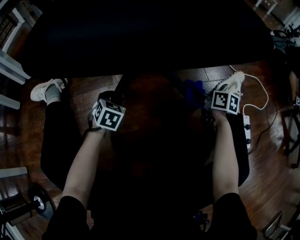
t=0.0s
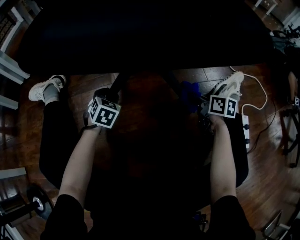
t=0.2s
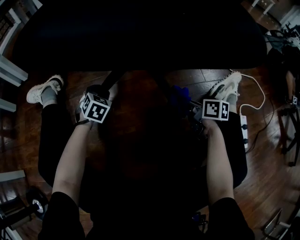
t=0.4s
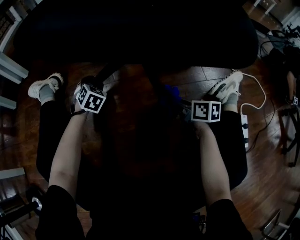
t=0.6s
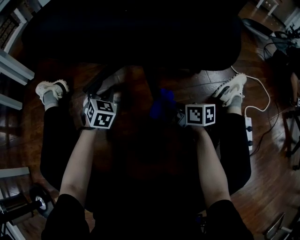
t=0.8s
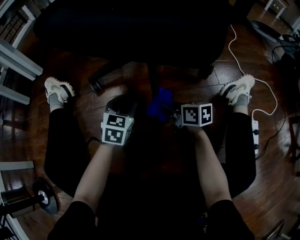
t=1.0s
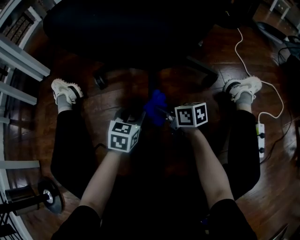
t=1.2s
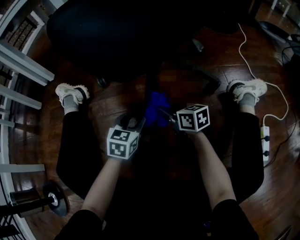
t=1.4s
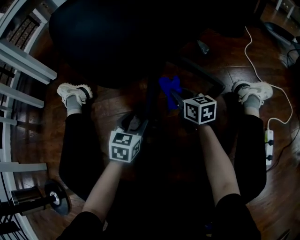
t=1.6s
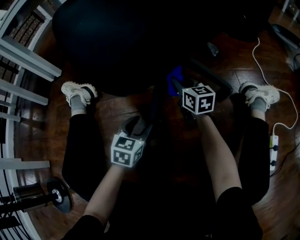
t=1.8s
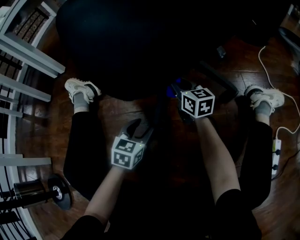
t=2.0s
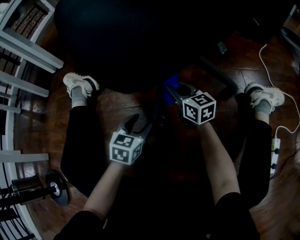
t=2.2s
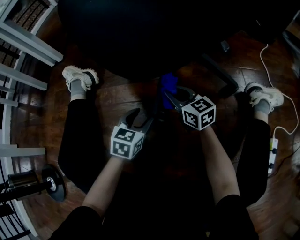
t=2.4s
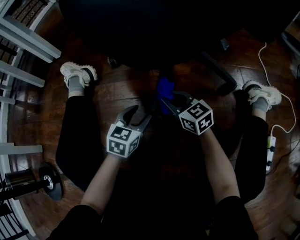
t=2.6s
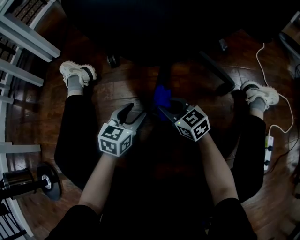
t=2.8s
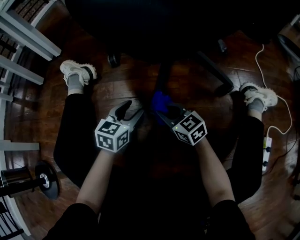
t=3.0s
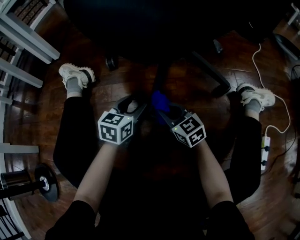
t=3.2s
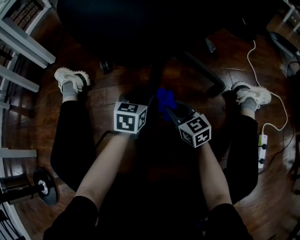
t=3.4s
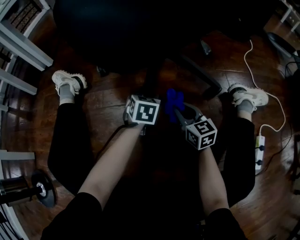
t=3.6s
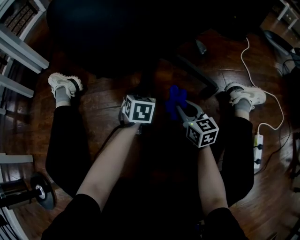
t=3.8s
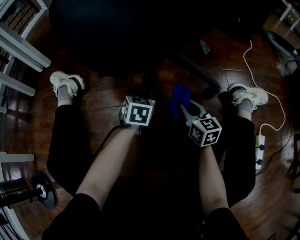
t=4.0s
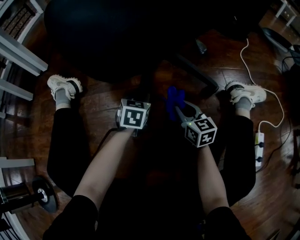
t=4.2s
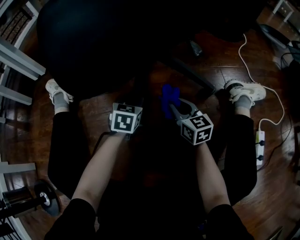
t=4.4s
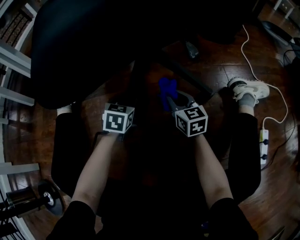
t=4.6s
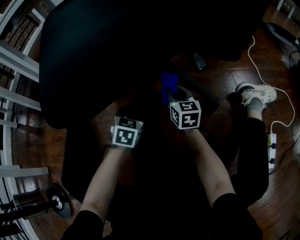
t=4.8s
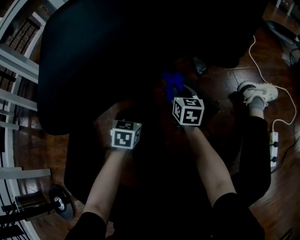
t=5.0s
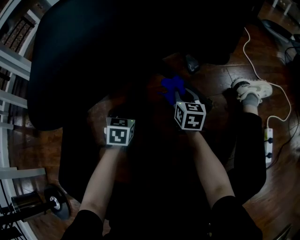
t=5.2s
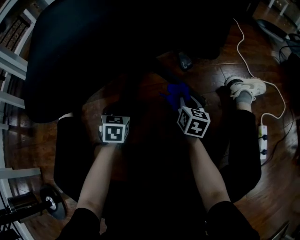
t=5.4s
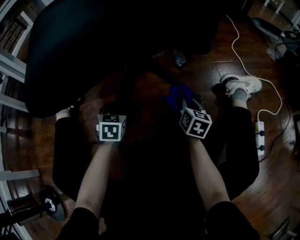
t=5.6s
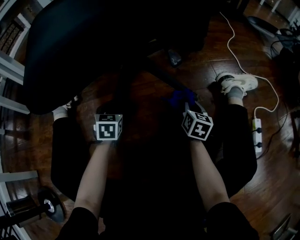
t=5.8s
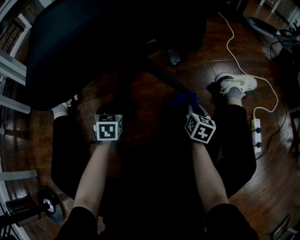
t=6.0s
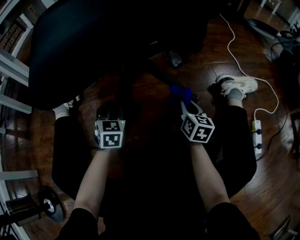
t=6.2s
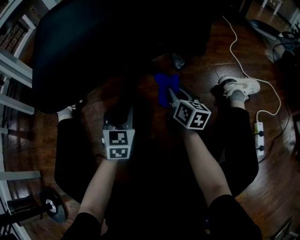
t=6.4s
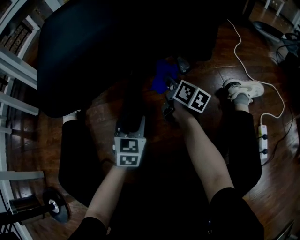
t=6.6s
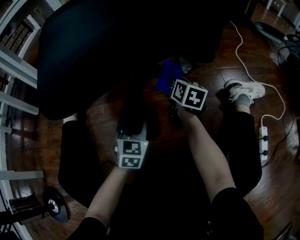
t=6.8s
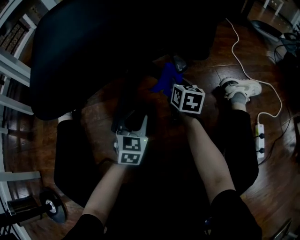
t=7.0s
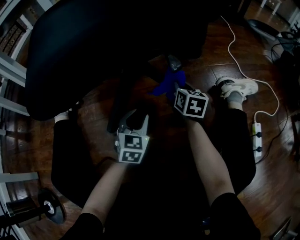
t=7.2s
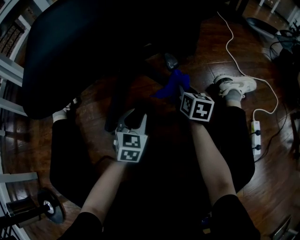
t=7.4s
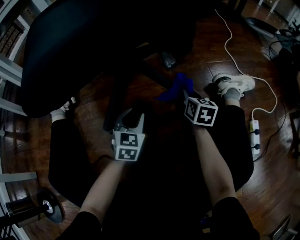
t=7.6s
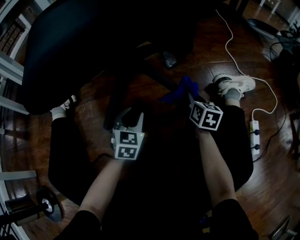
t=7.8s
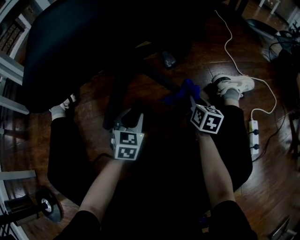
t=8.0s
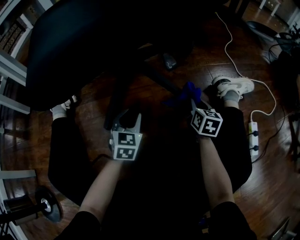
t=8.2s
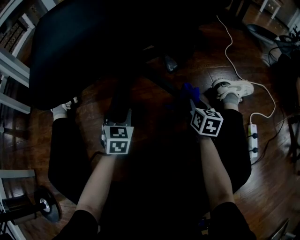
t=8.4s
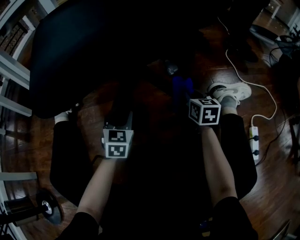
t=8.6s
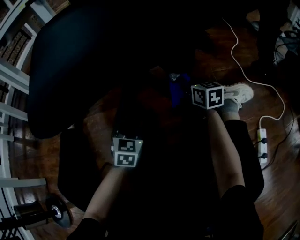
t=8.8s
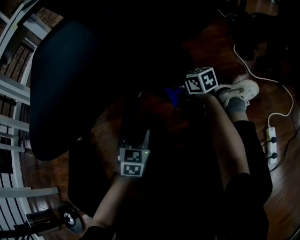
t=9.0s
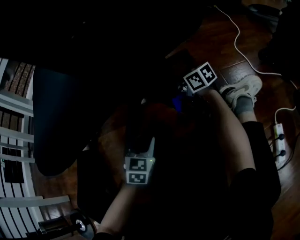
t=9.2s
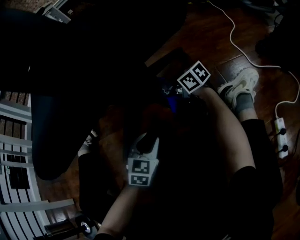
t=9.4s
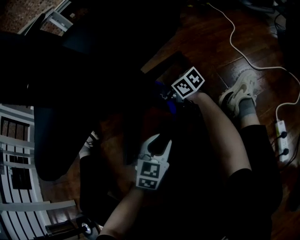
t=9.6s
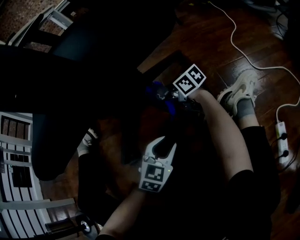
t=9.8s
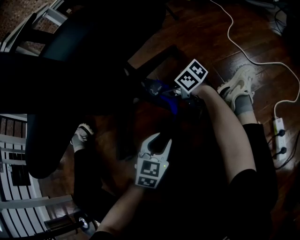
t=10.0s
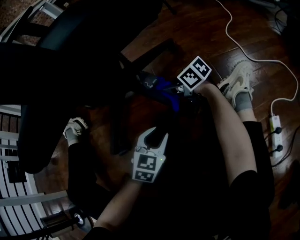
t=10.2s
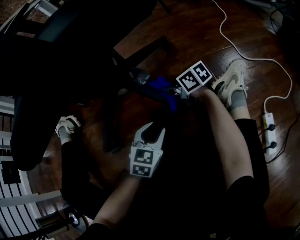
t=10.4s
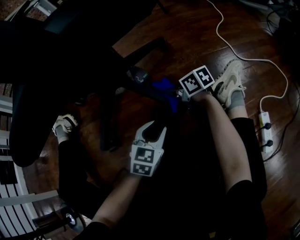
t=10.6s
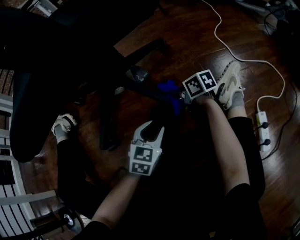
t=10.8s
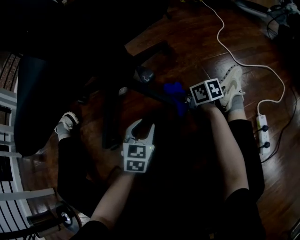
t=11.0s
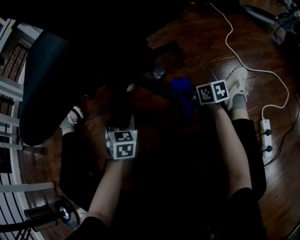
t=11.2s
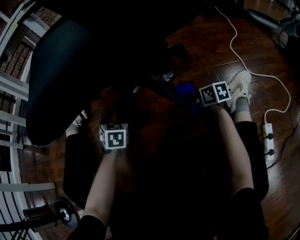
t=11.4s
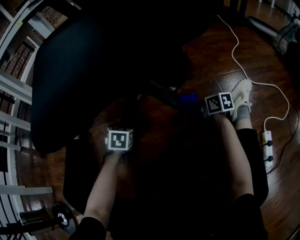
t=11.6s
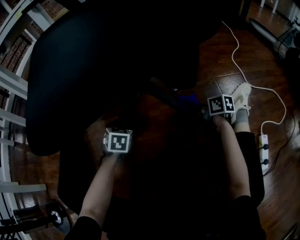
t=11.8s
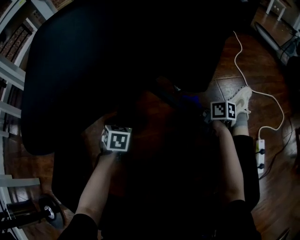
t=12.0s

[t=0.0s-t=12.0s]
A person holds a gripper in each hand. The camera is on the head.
t=0.0s to t=1.6s: The right gripper travels to the left and forward by about 25 cm, and changes its angle by approximately 30 degrees. The left gripper moves roughly 10 cm forward and comes back, and swivels roughly 20 degrees.
t=1.6s to t=3.0s: The right gripper is displaced to the left and backward by some 15 cm, and turns by some 30 degrees.
t=3.0s to t=4.4s: The left gripper moves forward and to the right, approximately 10 cm. The right gripper goes about 15 cm to the right, and rotates approximately 30 degrees.
t=4.4s to t=6.0s: The right gripper shifts roughly 15 cm to the right, and rotates about 40 degrees. Meanwhile the left gripper is displaced to the left by roughly 10 cm.
t=6.0s to t=7.6s: The right gripper is displaced forward by about 5 cm, and travels to the left and back again, roughly 15 cm each way, while the left gripper shifts approximately 10 cm to the right.
t=7.6s to t=9.0s: The right gripper shifts roughly 15 cm forward and to the left, and swivels approximately 40 degrees.
t=9.0s to t=10.4s: The left gripper goes roughly 15 cm to the right and backward, while the right gripper shifts approximately 10 cm backward and downward, and turns by some 30 degrees.
t=10.4s to t=12.0s: The right gripper shifts by about 5 cm, and changes its angle by about 30 degrees; the left gripper is displaced to the left and forward by about 25 cm, and changes its angle by about 30 degrees.

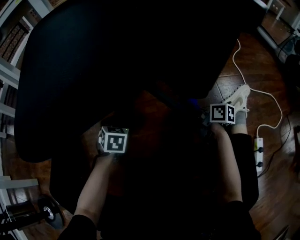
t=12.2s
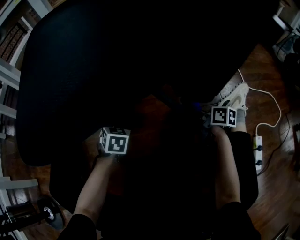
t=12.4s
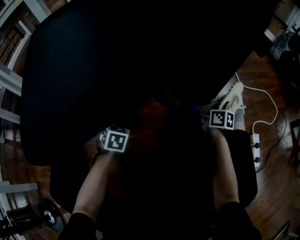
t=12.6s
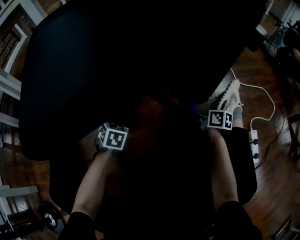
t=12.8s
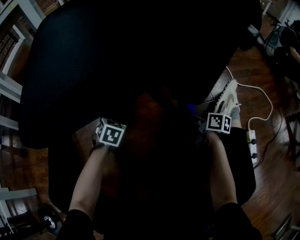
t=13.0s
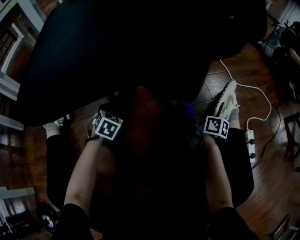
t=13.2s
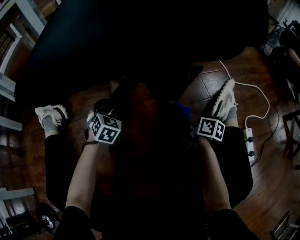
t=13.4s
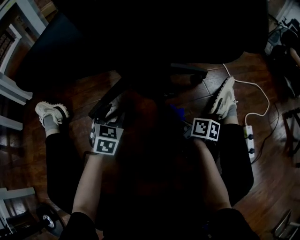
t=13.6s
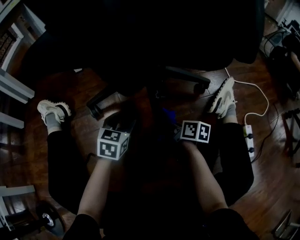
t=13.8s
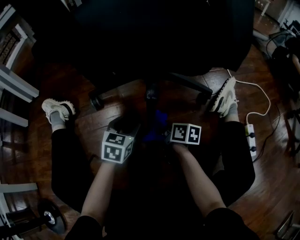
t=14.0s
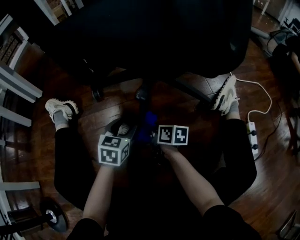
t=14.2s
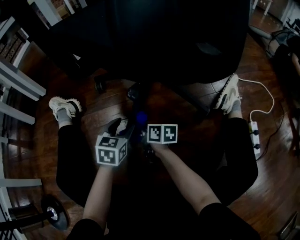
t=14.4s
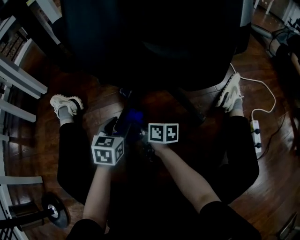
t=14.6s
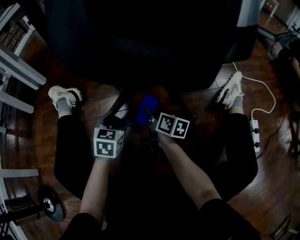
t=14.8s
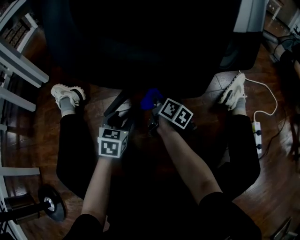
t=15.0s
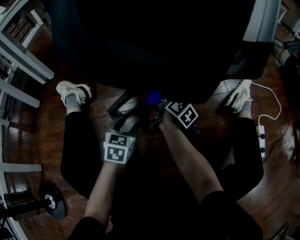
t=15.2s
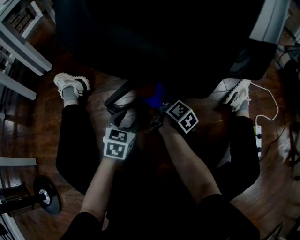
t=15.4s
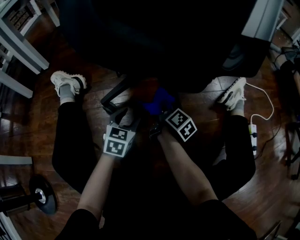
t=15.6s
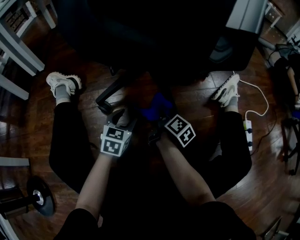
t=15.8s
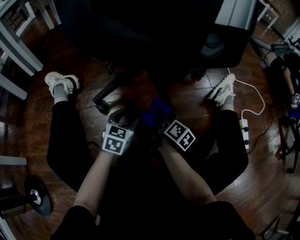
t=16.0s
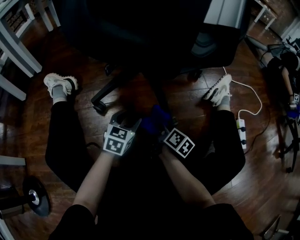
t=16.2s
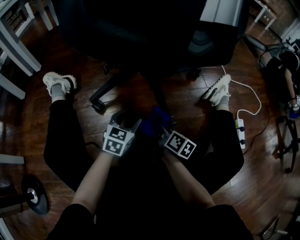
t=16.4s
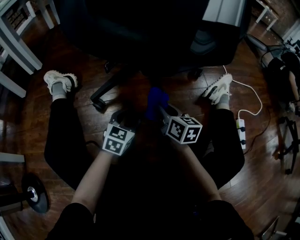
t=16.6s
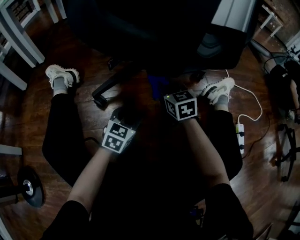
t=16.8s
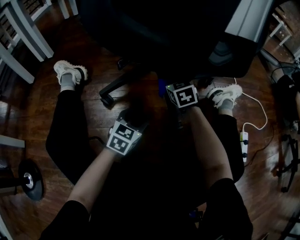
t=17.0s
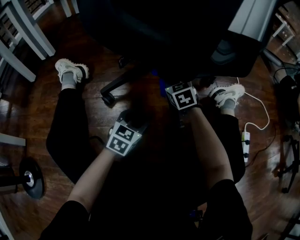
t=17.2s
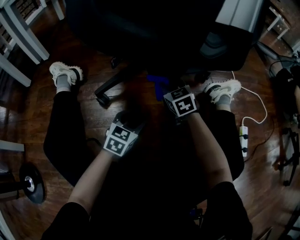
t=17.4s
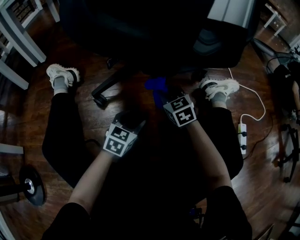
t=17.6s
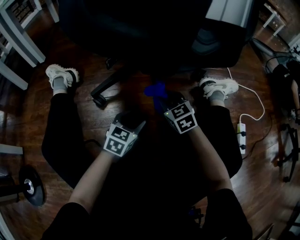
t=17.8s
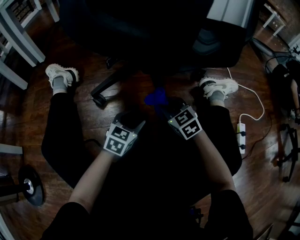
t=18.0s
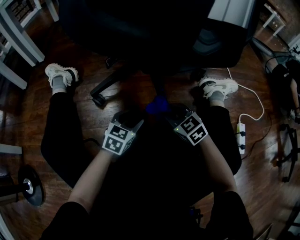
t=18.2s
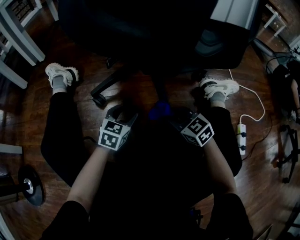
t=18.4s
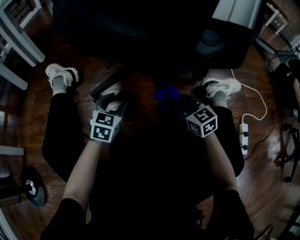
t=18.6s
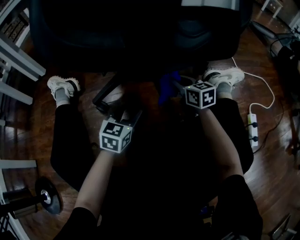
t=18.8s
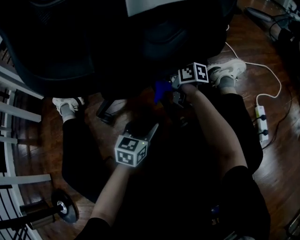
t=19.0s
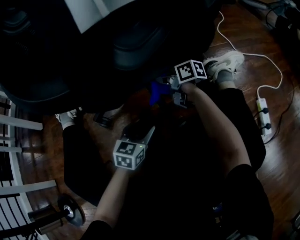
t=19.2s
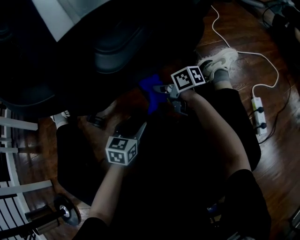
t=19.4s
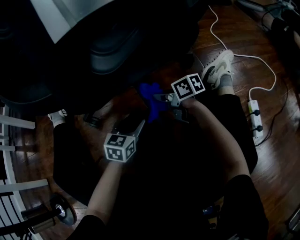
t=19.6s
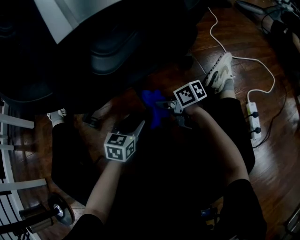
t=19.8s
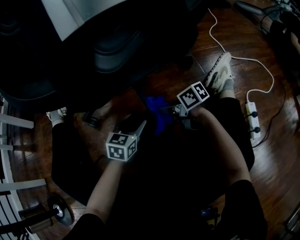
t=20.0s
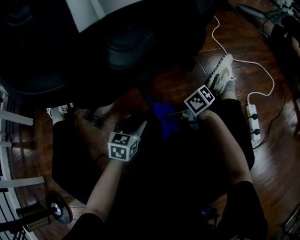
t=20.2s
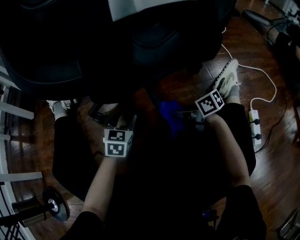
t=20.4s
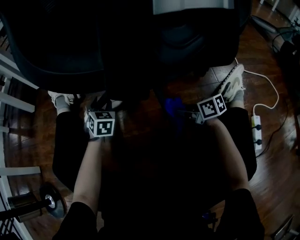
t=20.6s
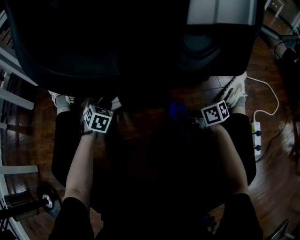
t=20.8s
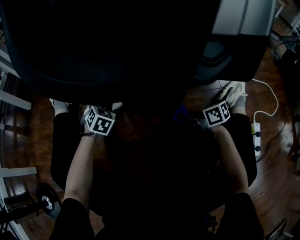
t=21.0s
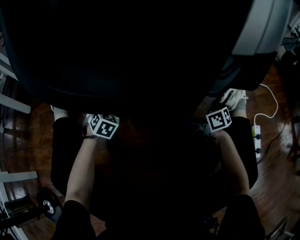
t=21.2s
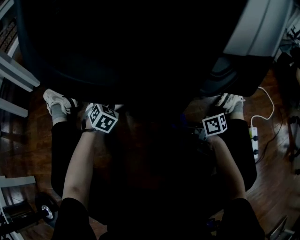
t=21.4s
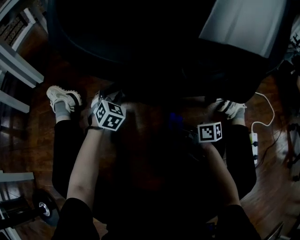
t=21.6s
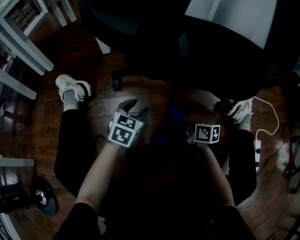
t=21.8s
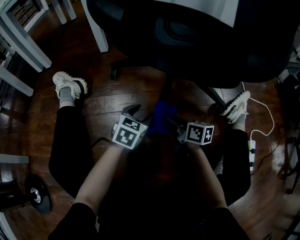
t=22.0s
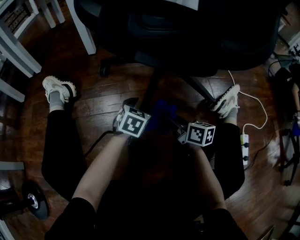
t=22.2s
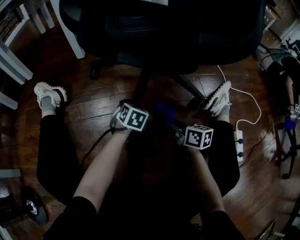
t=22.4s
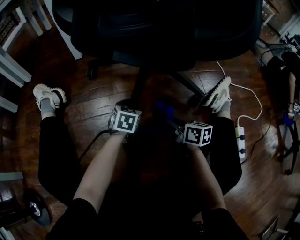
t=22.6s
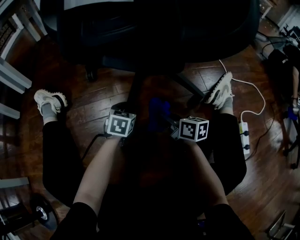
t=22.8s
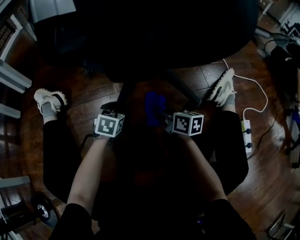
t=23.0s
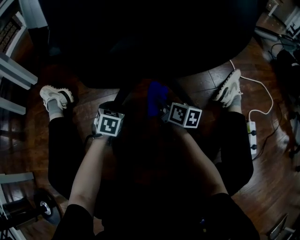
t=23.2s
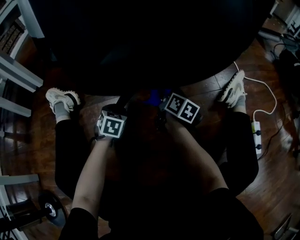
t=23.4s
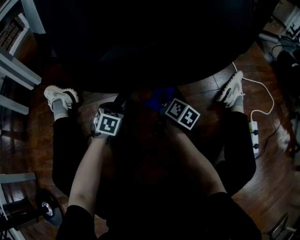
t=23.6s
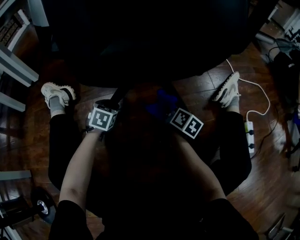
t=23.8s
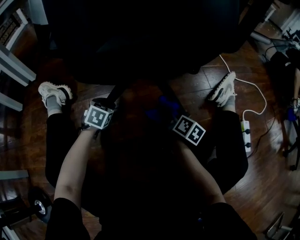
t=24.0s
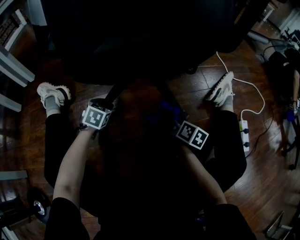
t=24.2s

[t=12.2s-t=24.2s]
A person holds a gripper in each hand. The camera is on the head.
t=12.2s to t=13.8s: The left gripper is displaced to the right and upward by roughly 10 cm, and turns by approximately 30 degrees. Meanwhile the right gripper shifts approximately 10 cm to the left and backward.
t=13.8s to t=15.2s: The left gripper is displaced to the left and backward by about 10 cm. Meanwhile the right gripper shifts about 10 cm to the left and forward, and swivels some 30 degrees.
t=15.2s to t=16.6s: The right gripper shifts about 15 cm backward and upward, and changes its angle by roughly 40 degrees. Meanwhile the left gripper moves to the right, roughly 10 cm.
t=16.6s to t=18.2s: The right gripper goes forward and returns, some 15 cm each way, and twists some 50 degrees counterclockwise, seen from behind.
t=18.2s to t=19.8s: The grippers both shift to the right by about 5 cm. The right gripper goes forward and returns, roughly 20 cm each way, and rotates around the line of its fingers by about 60 degrees, clockwise from behind.
t=19.8s to t=21.2s: The left gripper moves forward and to the left, approximately 25 cm, and turns by approximately 40 degrees.
t=21.2s to t=22.6s: The right gripper rotates about 30 degrees. Meanwhile the left gripper shifts by roughly 15 cm, and swivels roughly 30 degrees.
t=22.6s to t=24.2s: The left gripper goes roughly 15 cm to the left; the right gripper moves approximately 10 cm forward and comes back, and swivels about 30 degrees.
